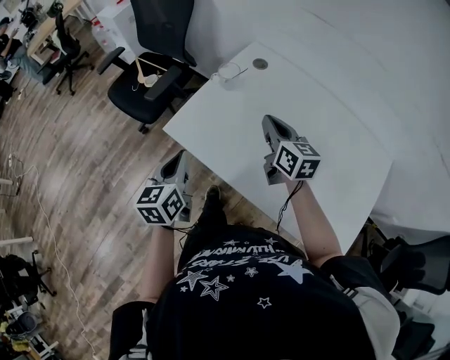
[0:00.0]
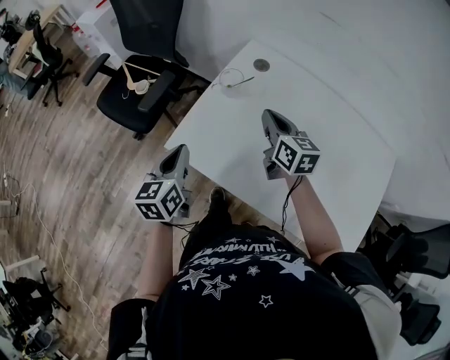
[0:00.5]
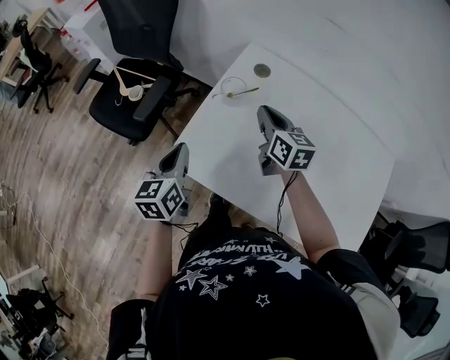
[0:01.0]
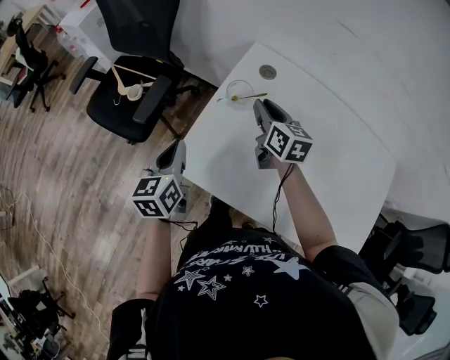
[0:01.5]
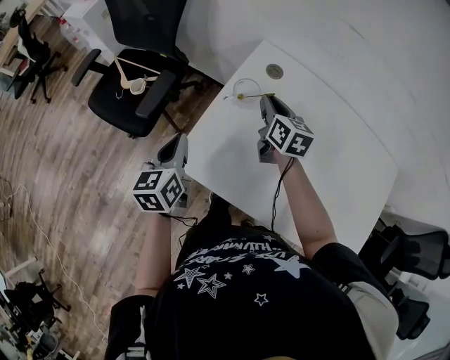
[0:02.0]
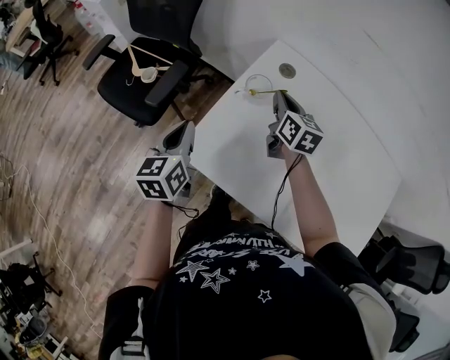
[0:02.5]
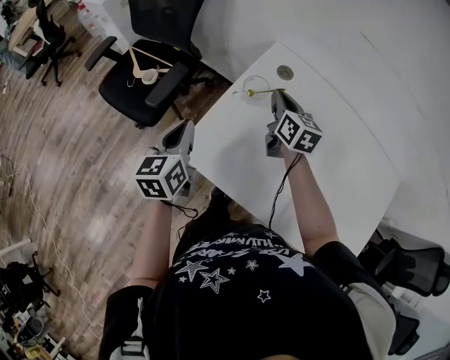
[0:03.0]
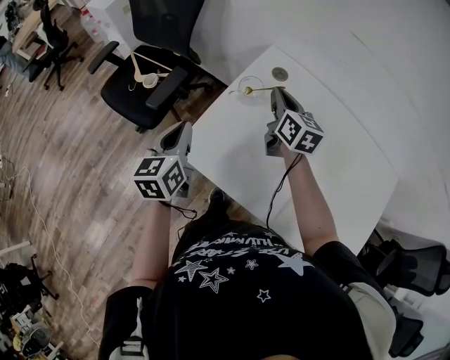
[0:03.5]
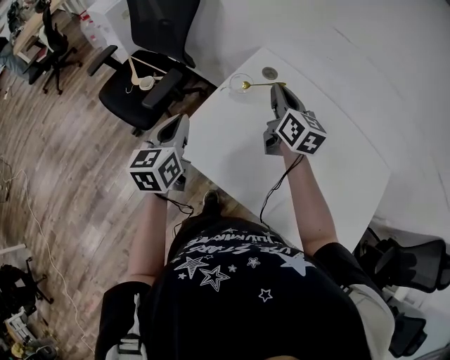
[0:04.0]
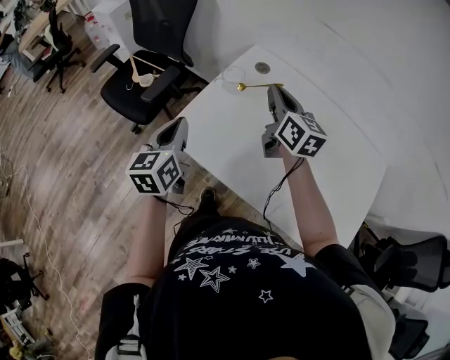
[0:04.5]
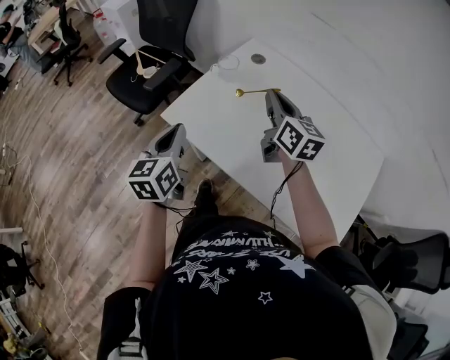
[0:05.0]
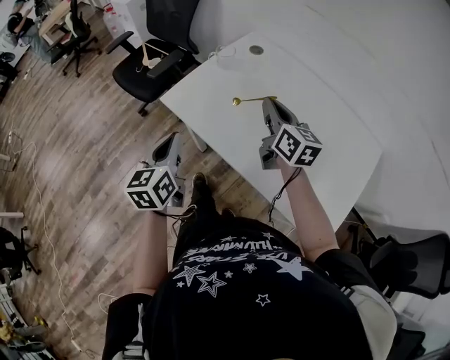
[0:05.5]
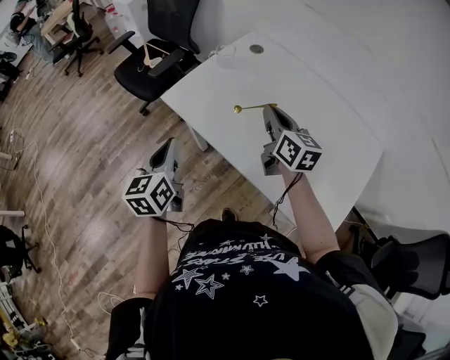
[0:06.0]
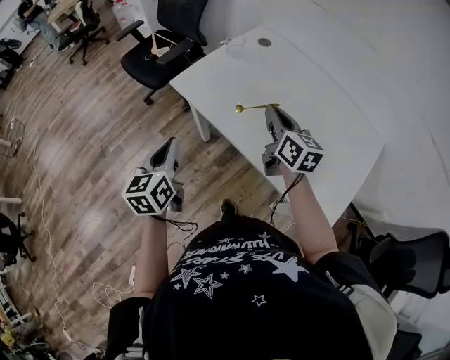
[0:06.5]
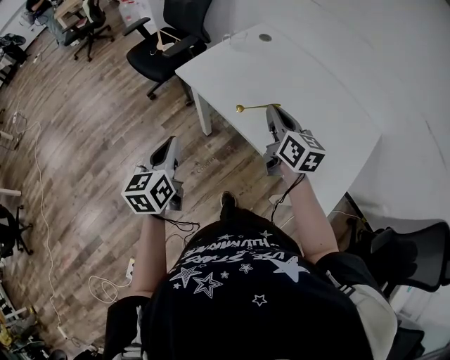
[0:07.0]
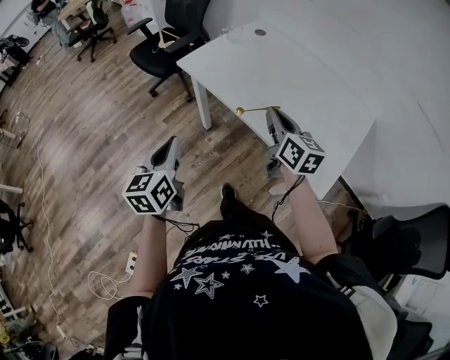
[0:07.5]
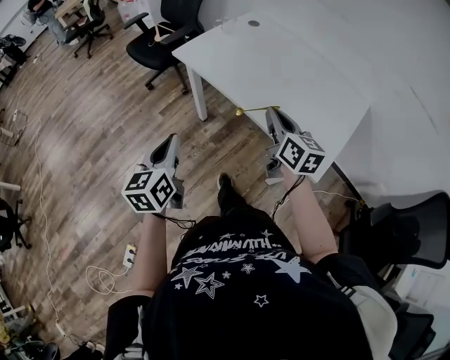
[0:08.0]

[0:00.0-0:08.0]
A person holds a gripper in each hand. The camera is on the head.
0:00.0 to 0:02.0: The right gripper moves forward, some 20 cm. Meanwhile the left gripper heads forward and to the left, covering roughly 20 cm.
0:02.0 to 0:04.0: The left gripper heads upward, covering some 5 cm; the right gripper is displaced upward and backward by roughly 10 cm.
0:04.0 to 0:06.0: Both grippers travel together backward, some 25 cm.
0:06.0 to 0:08.0: The two grippers go roughly 30 cm backward.

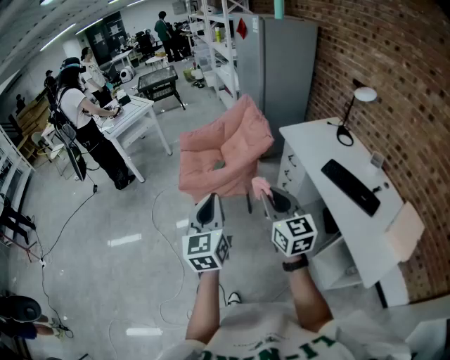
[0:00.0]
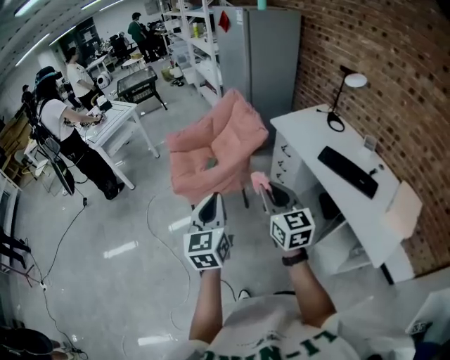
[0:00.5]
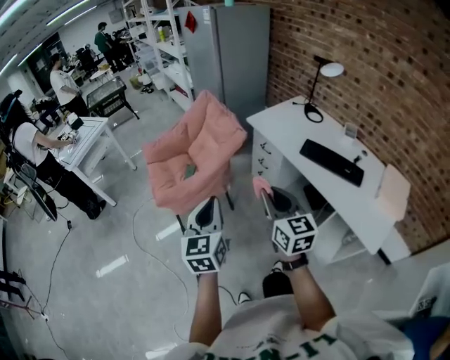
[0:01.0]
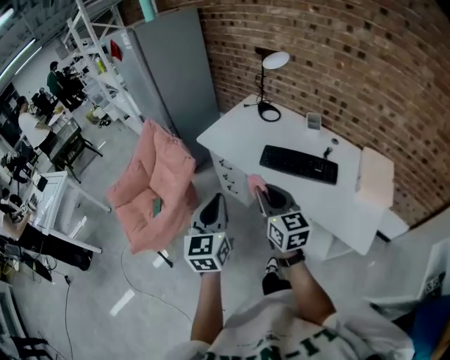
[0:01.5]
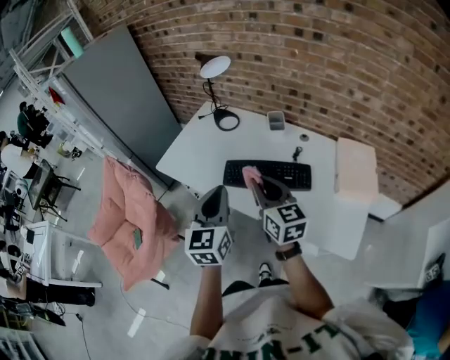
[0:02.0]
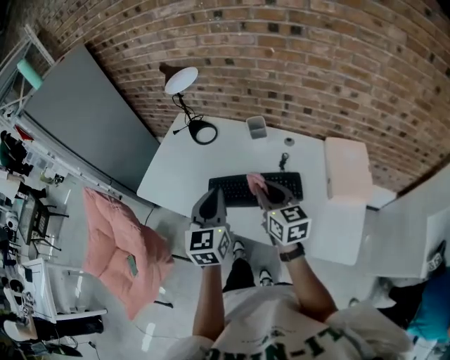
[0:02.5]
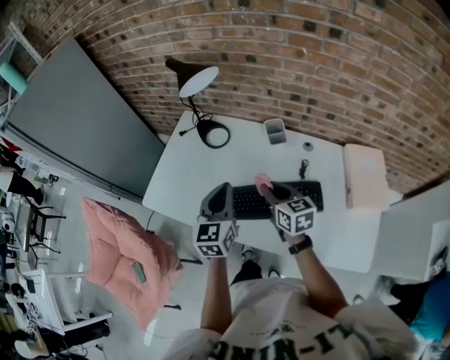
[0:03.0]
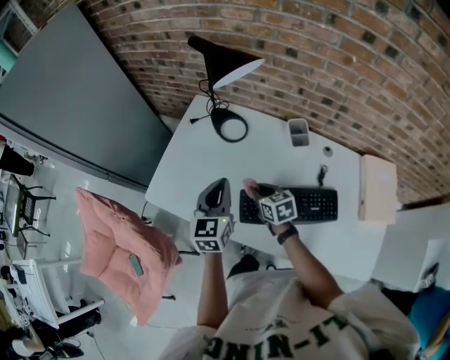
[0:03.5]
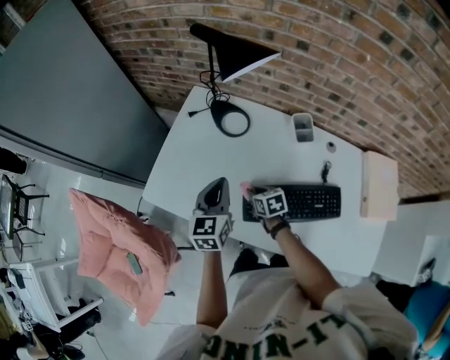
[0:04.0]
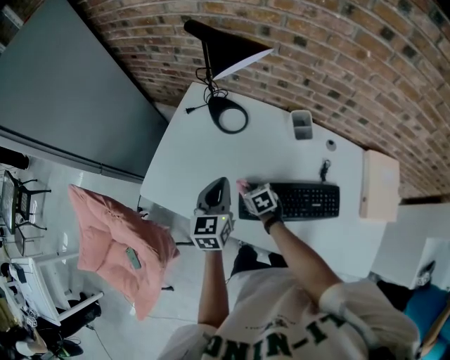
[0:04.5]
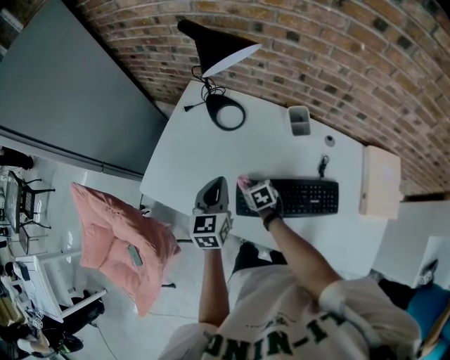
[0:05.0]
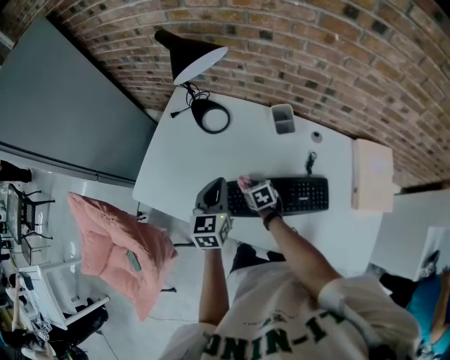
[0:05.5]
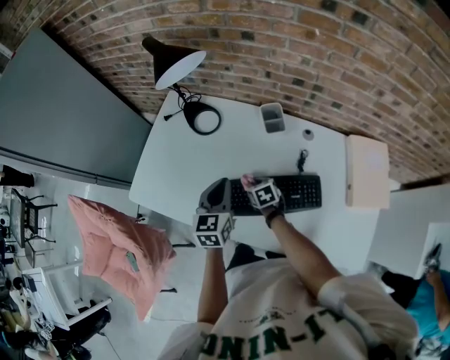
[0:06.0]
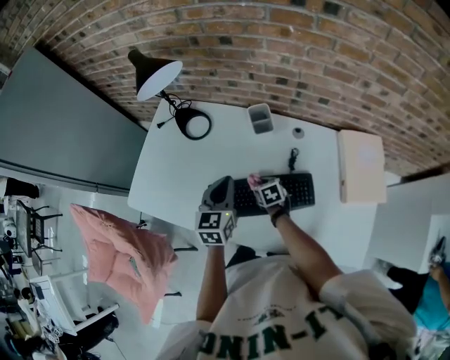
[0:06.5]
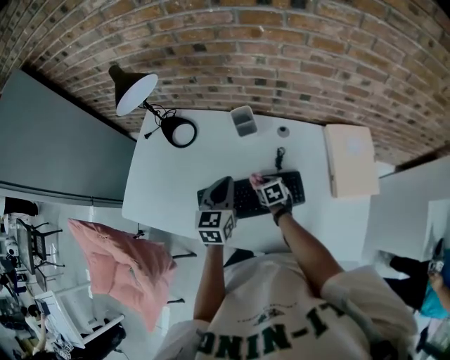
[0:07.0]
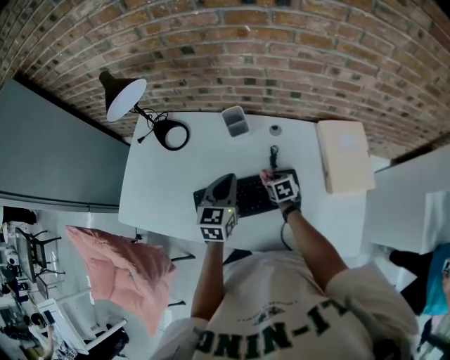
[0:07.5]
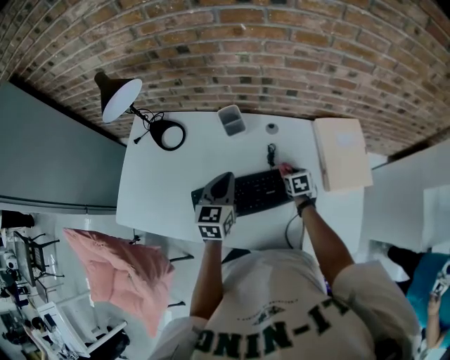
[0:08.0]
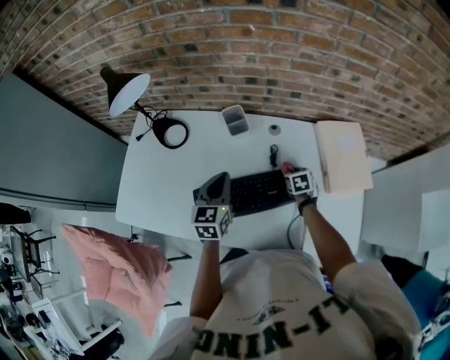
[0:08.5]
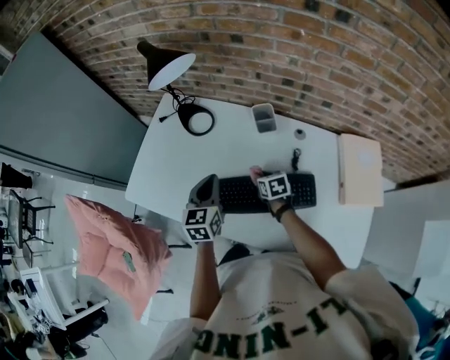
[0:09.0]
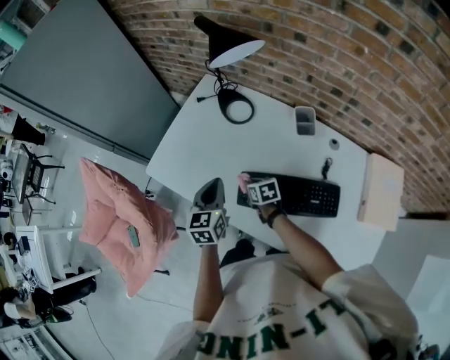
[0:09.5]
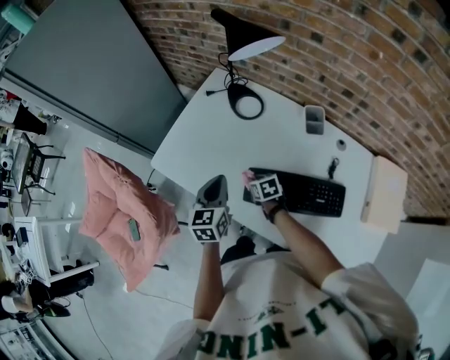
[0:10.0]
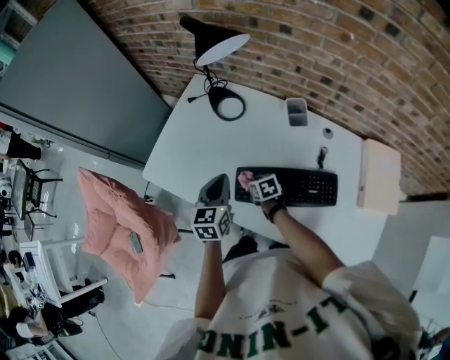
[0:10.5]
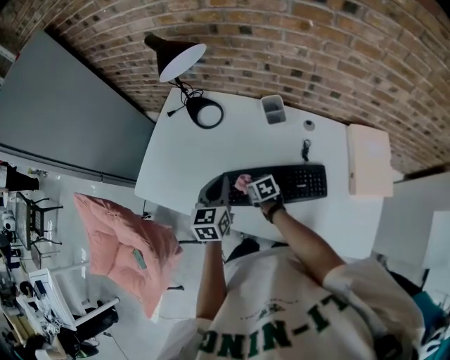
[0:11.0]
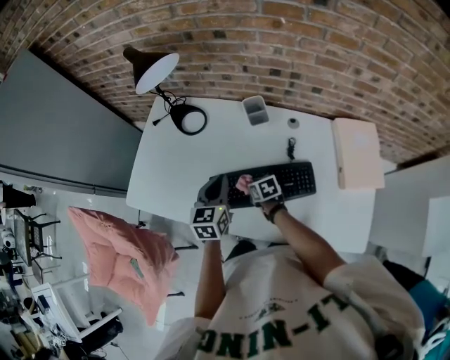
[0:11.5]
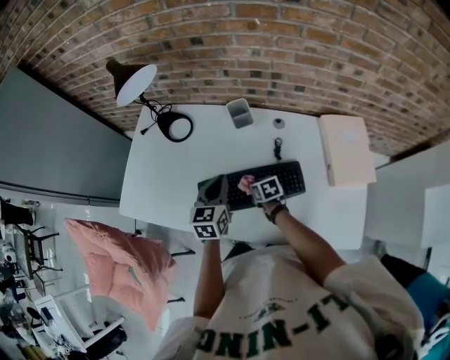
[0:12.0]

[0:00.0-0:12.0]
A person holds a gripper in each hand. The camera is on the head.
0:00.0 to 0:02.0: The pair of grippers is taken about 50 cm. The right gripper changes its angle by some 40 degrees; the left gripper turns by approximately 50 degrees.
0:02.0 to 0:04.0: The right gripper heads downward and forward, covering roughly 50 cm, and tips its fingers downward by some 40 degrees. The left gripper is displaced forward and downward by roughly 40 cm.
0:04.0 to 0:06.0: The right gripper goes approximately 10 cm to the right; the left gripper is displaced to the right and backward by about 15 cm.
0:06.0 to 0:08.0: The left gripper ends up approximately 15 cm from where it was. Meanwhile the right gripper shifts by approximately 30 cm, and swivels roughly 20 degrees.
0:08.0 to 0:10.0: The right gripper ends up some 40 cm from where it was, and swivels about 40 degrees; the left gripper ends up some 30 cm from where it was, and swivels approximately 30 degrees.
0:10.0 to 0:12.0: The two grippers go about 20 cm to the right. The right gripper swivels about 20 degrees. Meanwhile the left gripper rotates roughly 20 degrees.

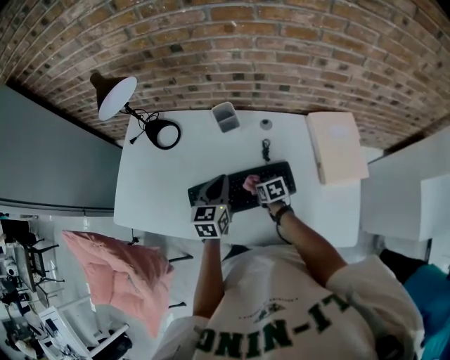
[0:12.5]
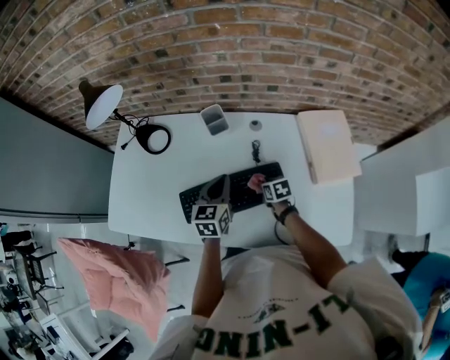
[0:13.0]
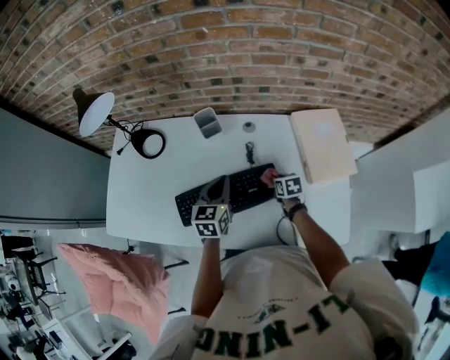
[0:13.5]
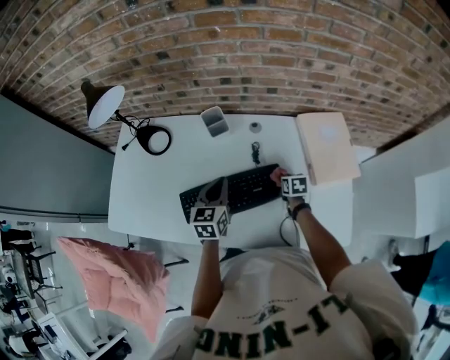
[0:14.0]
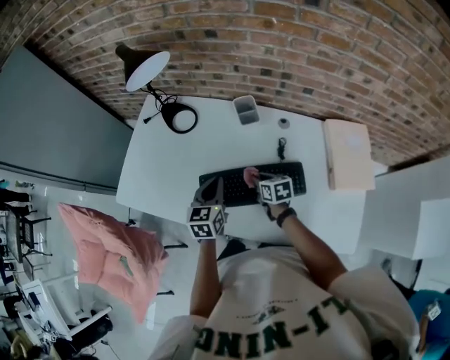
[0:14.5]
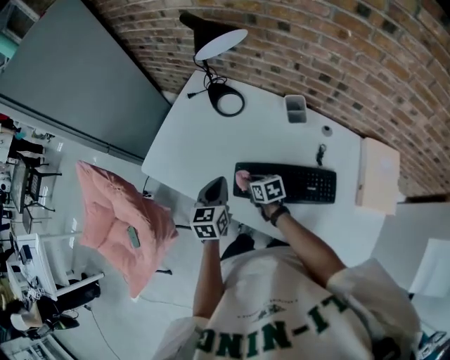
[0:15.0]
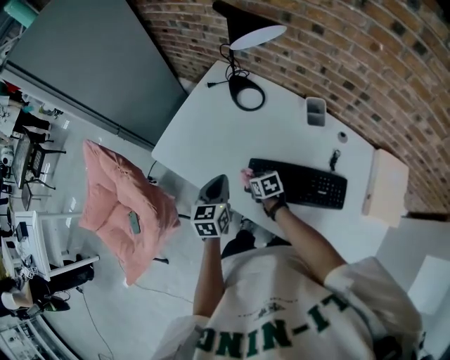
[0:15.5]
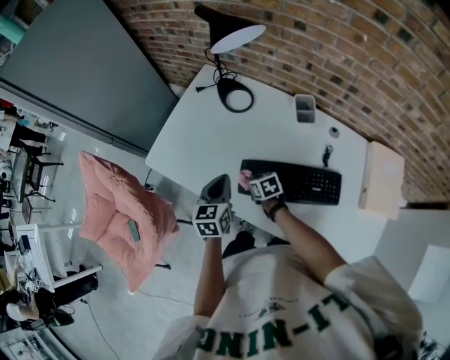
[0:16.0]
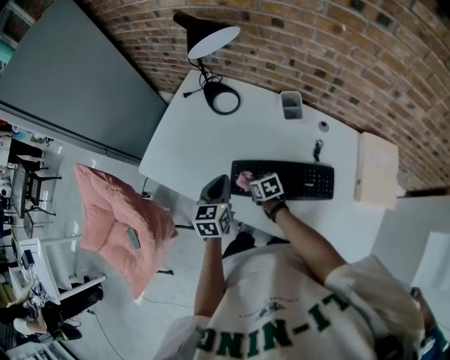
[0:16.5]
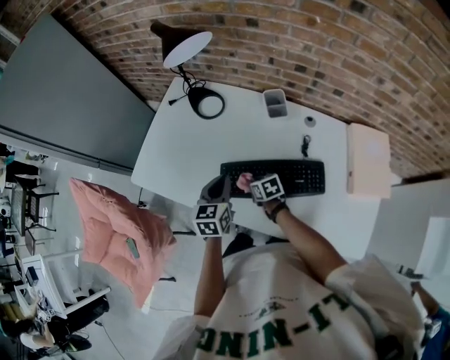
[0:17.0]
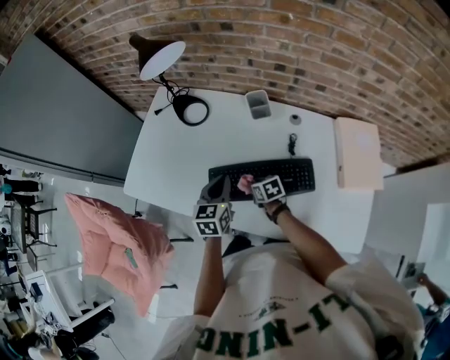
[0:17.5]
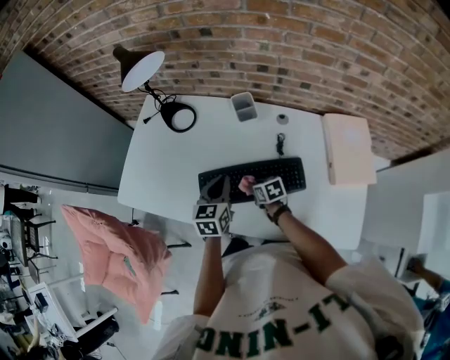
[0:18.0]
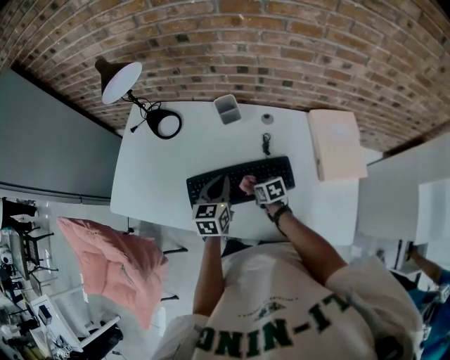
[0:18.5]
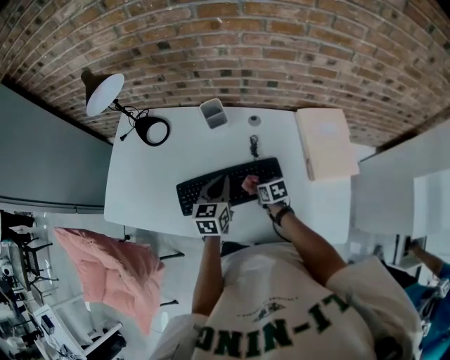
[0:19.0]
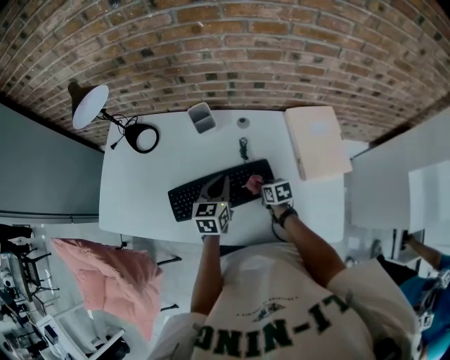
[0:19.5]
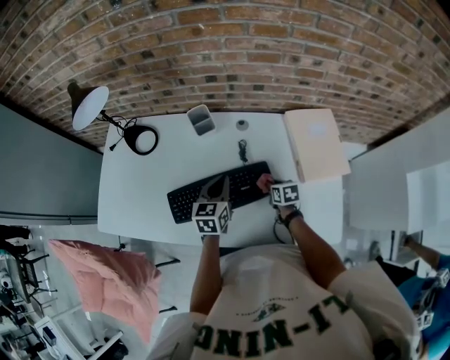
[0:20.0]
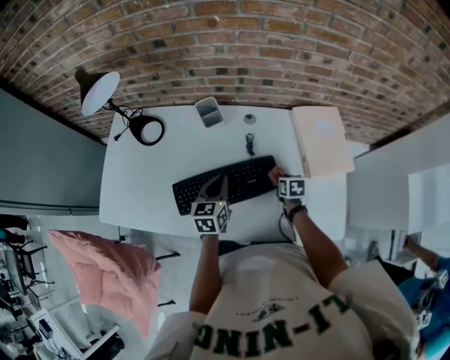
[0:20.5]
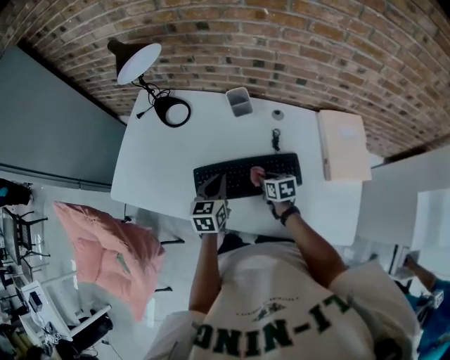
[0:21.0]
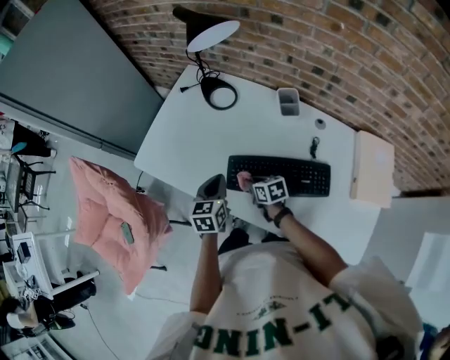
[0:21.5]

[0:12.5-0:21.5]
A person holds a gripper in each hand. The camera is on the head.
0:12.5 to 0:14.5: The left gripper is displaced to the left by roughly 10 cm. The right gripper travels upward by roughly 5 cm, and moves about 15 cm to the right and comes back.
0:14.5 to 0:17.0: The right gripper moves to the left and downward, about 15 cm. The left gripper moves to the left, about 5 cm.
0:17.0 to 0:19.5: The two grippers go about 25 cm to the right. The right gripper swivels some 20 degrees.
0:19.5 to 0:21.5: The left gripper ends up some 25 cm from where it was, and changes its angle by about 30 degrees; the right gripper moves roughly 30 cm, and changes its angle by approximately 30 degrees.
